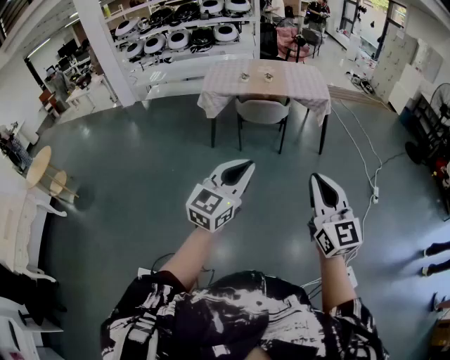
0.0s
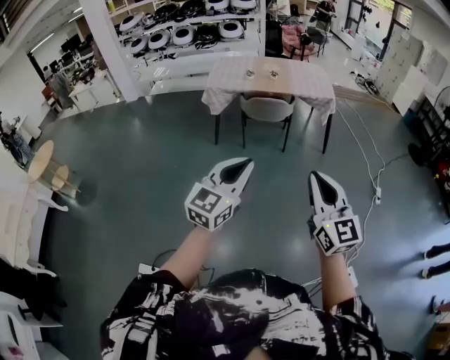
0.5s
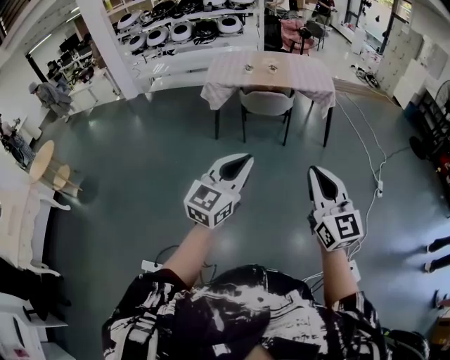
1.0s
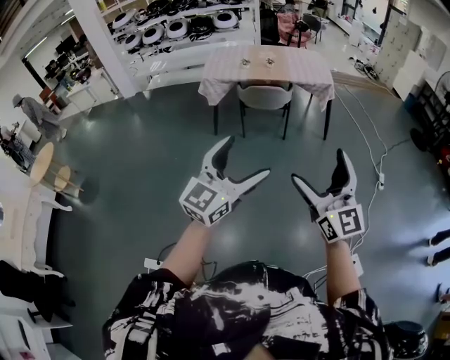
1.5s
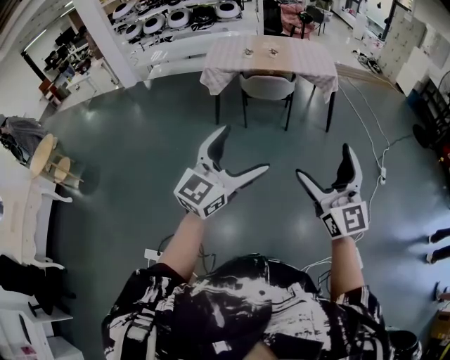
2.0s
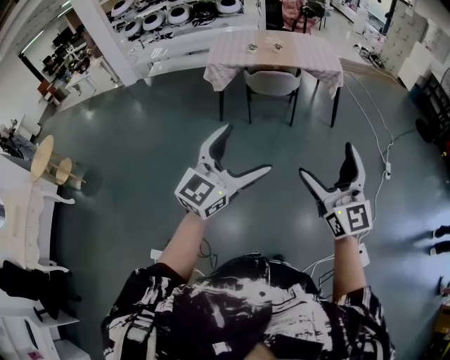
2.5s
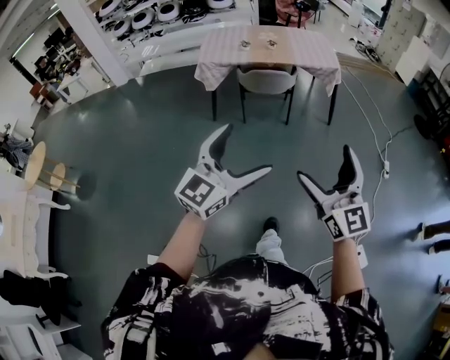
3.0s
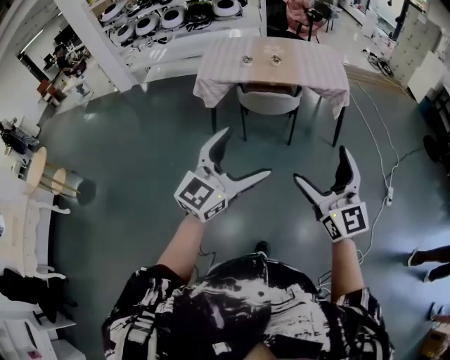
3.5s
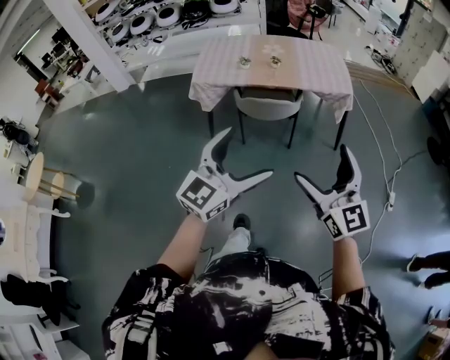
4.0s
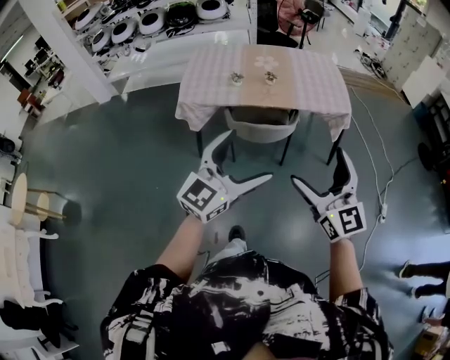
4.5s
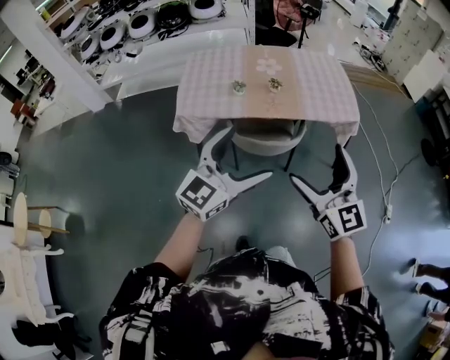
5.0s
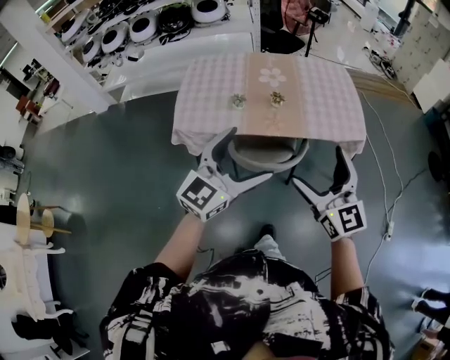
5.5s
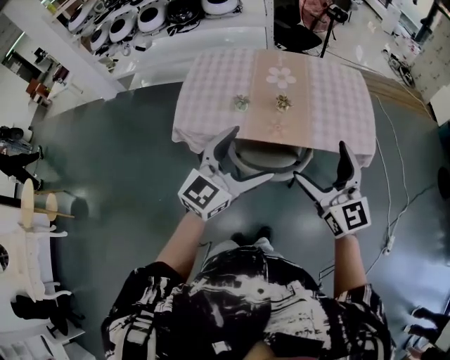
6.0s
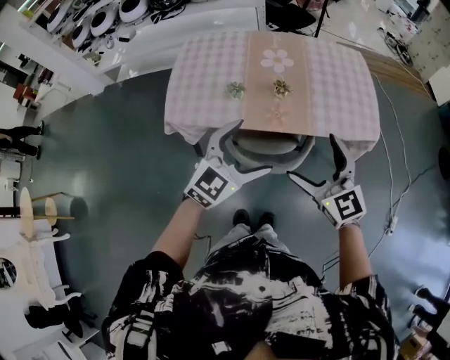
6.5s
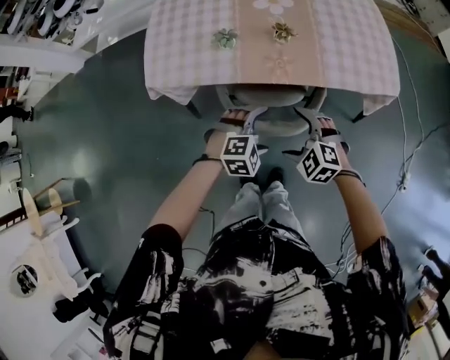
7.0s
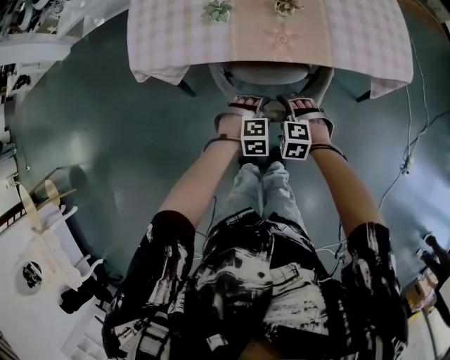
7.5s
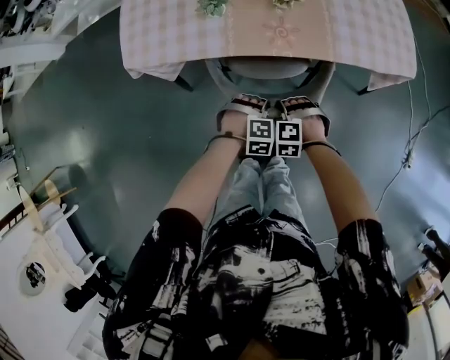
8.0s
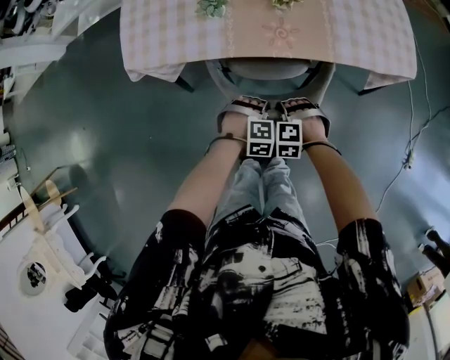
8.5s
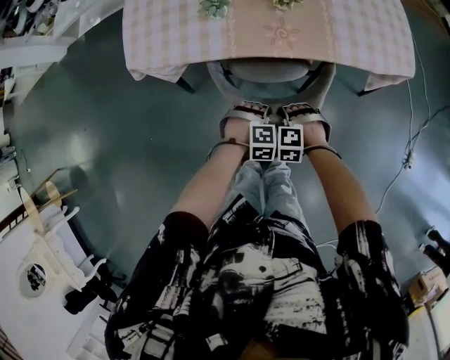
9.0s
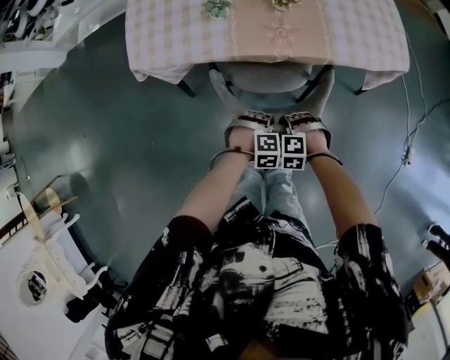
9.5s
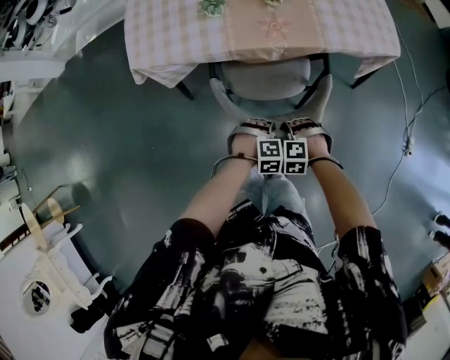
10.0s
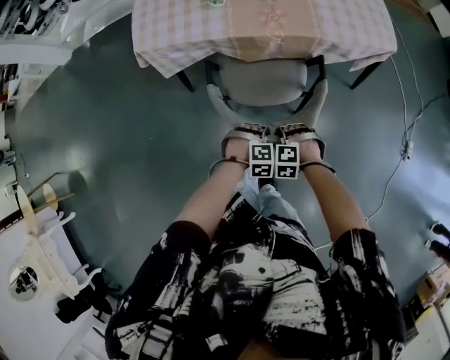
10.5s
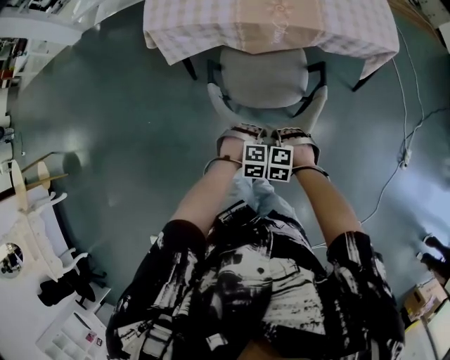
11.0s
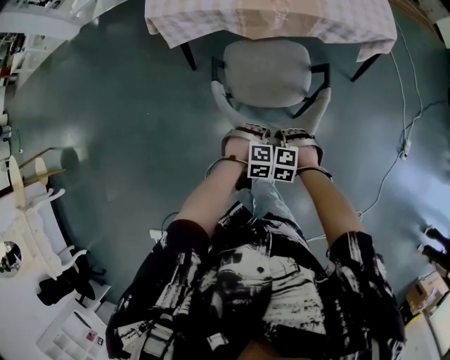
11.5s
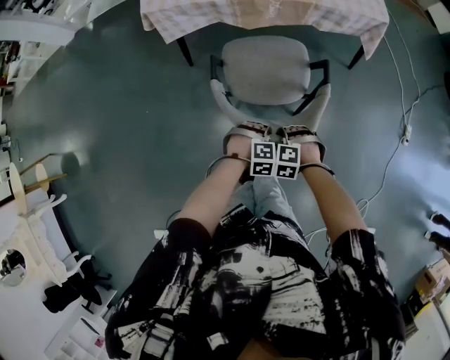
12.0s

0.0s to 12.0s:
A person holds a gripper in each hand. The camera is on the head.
0.0s to 2.0s: The right gripper opens its fingers. The left gripper opens up.
2.0s to 4.0s: Both grippers are carried forward, roughly 40 cm.
4.0s to 6.0s: The two grippers travel together, forward, some 60 cm.
6.0s to 8.0s: The two grippers go about 60 cm downward. The left gripper points its fingers about 70 degrees further downward, and closes up. Meanwhile the right gripper tilts its fingers approximately 70 degrees downward, and closes up.
8.0s to 10.0s: The right gripper shifts by roughly 15 cm, while the left gripper shifts by some 15 cm.
10.0s to 12.0s: The left gripper shifts by about 30 cm. Meanwhile the right gripper ends up approximately 30 cm from where it was.

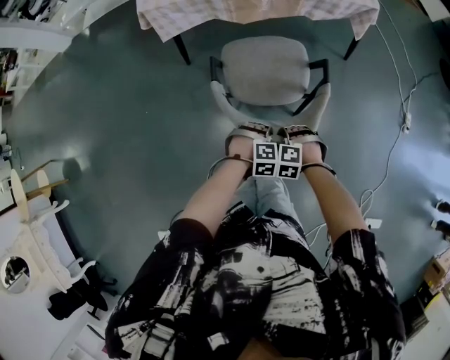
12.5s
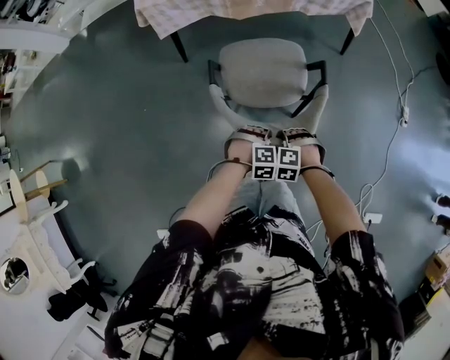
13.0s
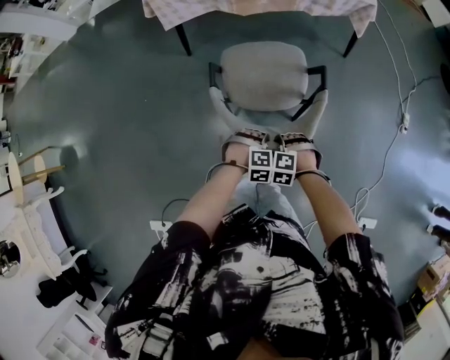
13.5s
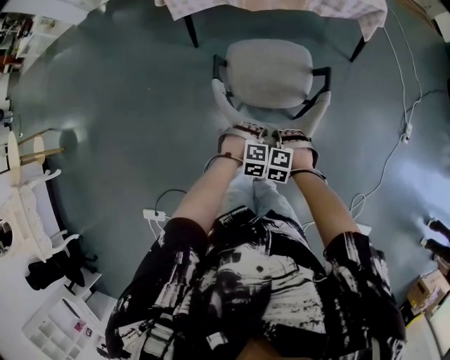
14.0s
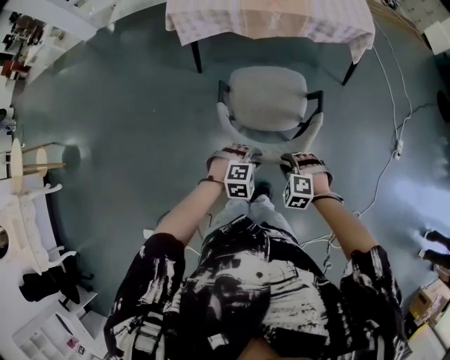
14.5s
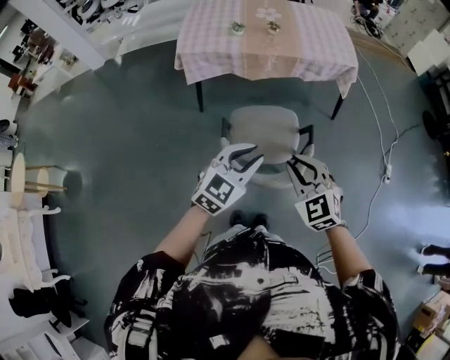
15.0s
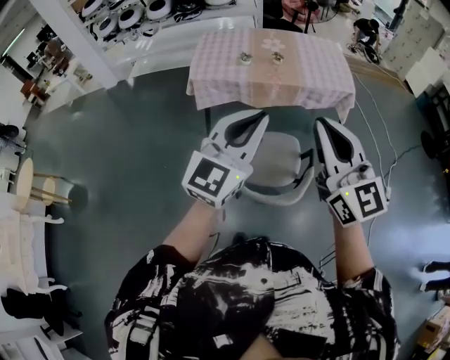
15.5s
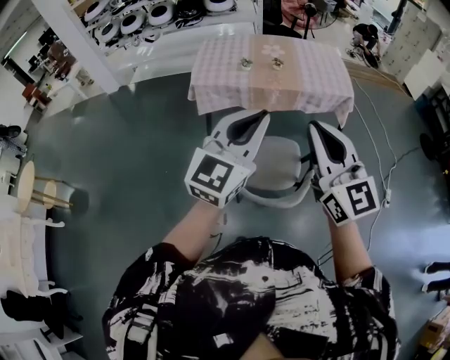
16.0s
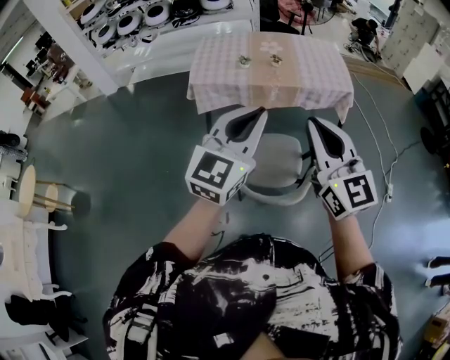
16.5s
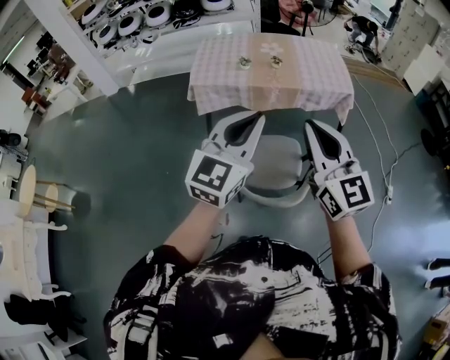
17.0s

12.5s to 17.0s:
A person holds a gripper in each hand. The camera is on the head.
12.5s to 14.5s: The right gripper shifts by roughly 15 cm, while the left gripper ends up roughly 15 cm from where it was.
14.5s to 17.0s: Both grippers travel together upward, about 50 cm. The left gripper tilts its fingers about 60 degrees upward. The right gripper angles its fingers upward, by some 70 degrees.

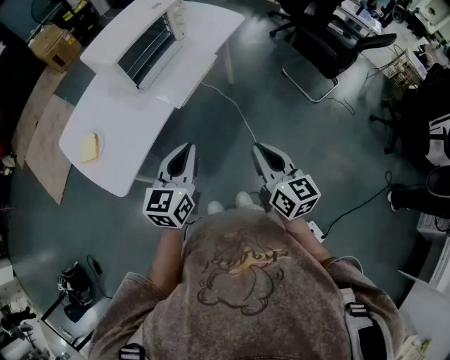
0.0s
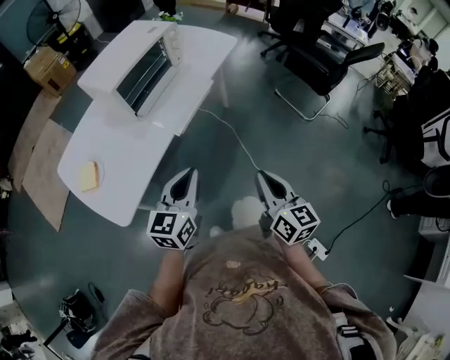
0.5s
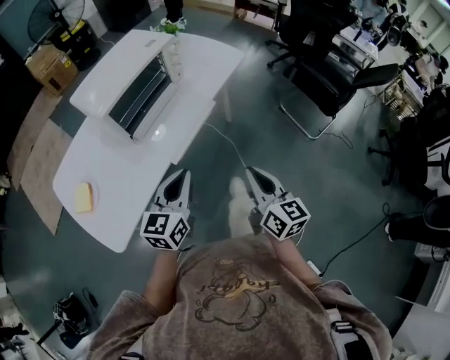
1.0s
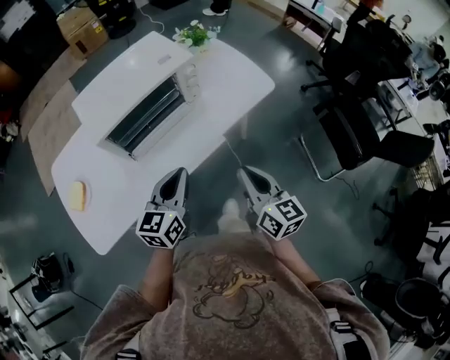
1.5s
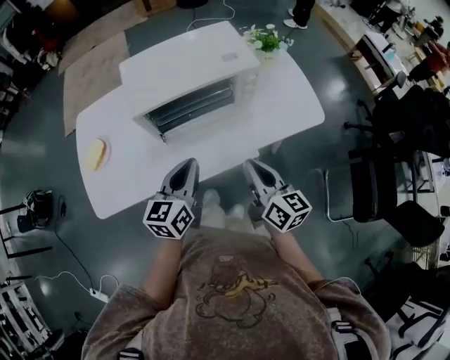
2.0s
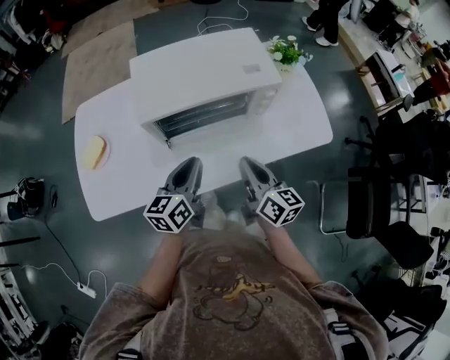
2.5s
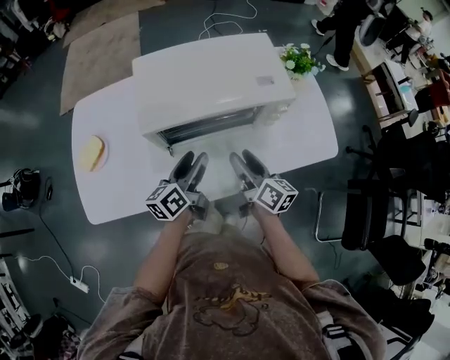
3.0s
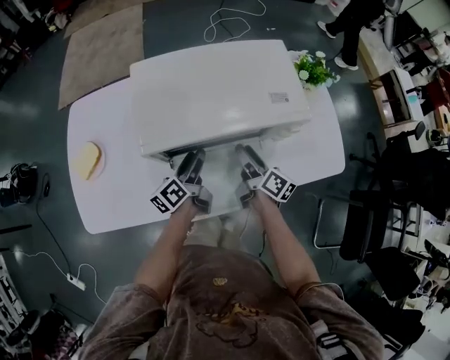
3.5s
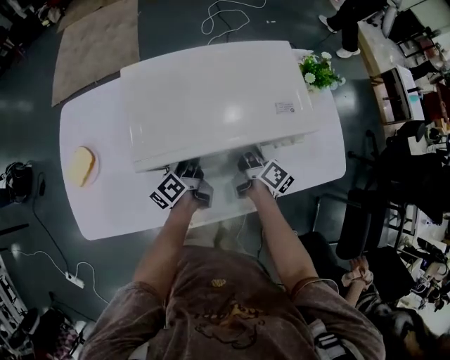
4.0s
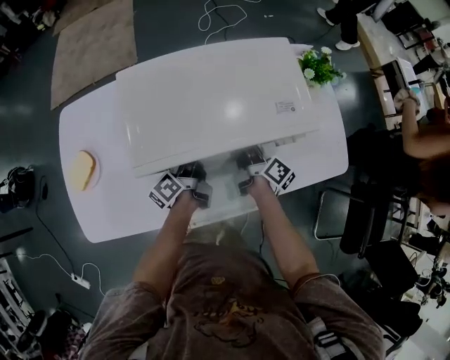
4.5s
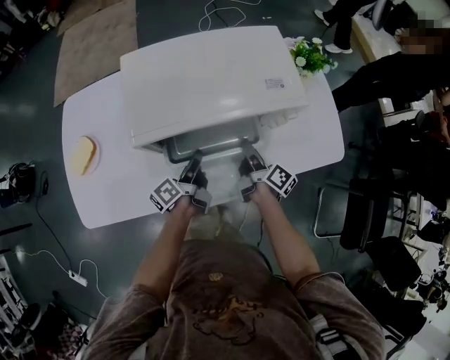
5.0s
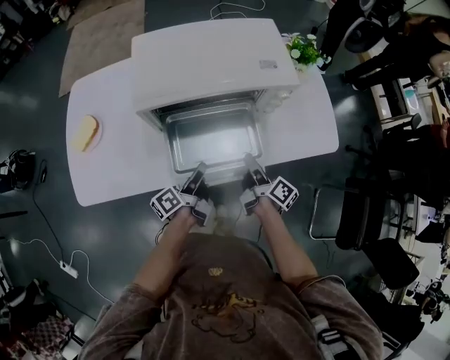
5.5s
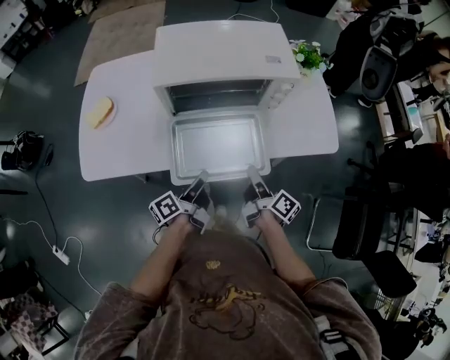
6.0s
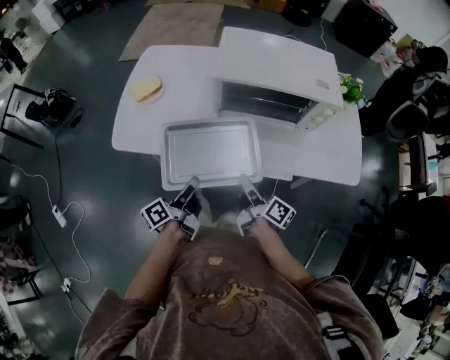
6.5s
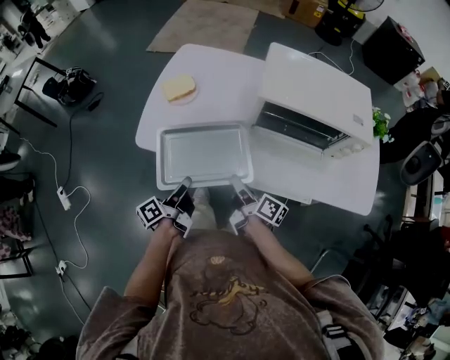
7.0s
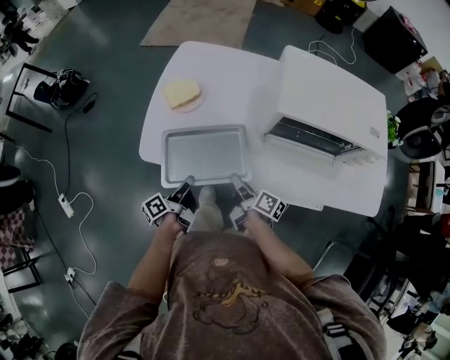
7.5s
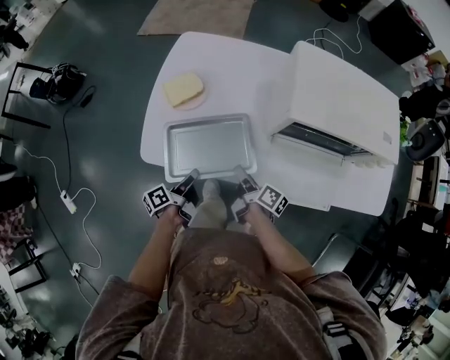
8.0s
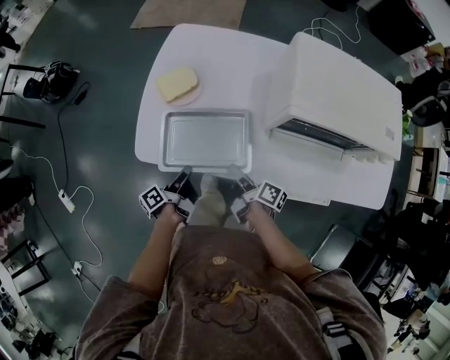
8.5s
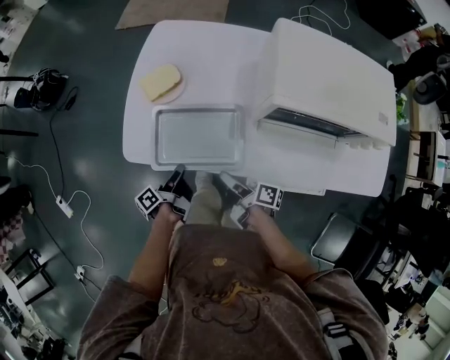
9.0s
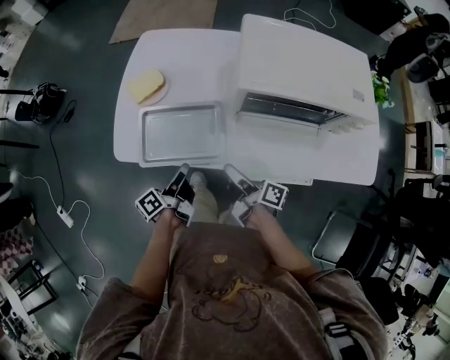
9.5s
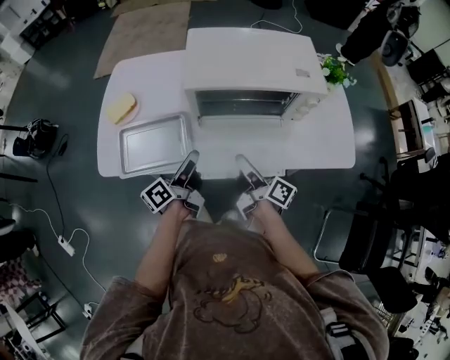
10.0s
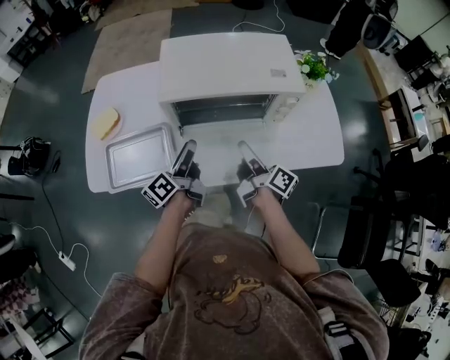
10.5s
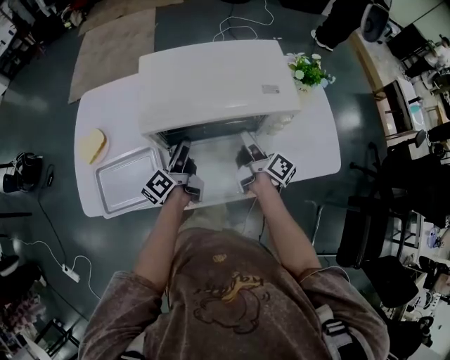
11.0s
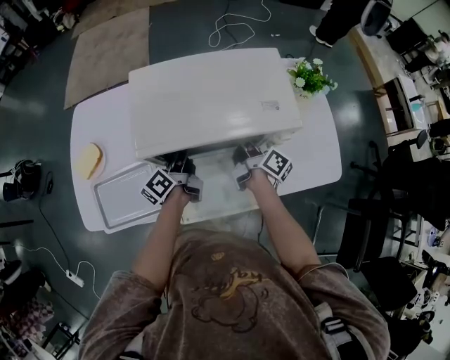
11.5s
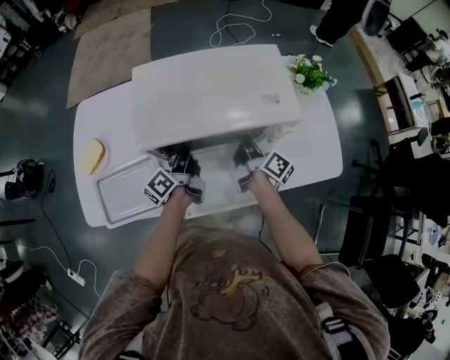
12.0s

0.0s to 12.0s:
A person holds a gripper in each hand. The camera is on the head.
0.0s to 2.0s: The left gripper ends up roughly 30 cm from where it was, and rotates approximately 40 degrees. The right gripper shifts by some 40 cm, and changes its angle by some 40 degrees.
2.0s to 4.0s: The two grippers go about 30 cm forward and downward. The left gripper twists approximately 50 degrees counterclockwise, seen from behind, and opens up. Meanwhile the right gripper rotates some 30 degrees, and opens.
4.0s to 6.0s: Both grippers travel together backward, about 25 cm. The right gripper closes up; the left gripper closes up.
6.0s to 8.0s: The right gripper ends up roughly 35 cm from where it was, and rotates some 30 degrees. The left gripper moves approximately 35 cm, and turns by about 20 degrees.
8.0s to 10.0s: The two grippers go about 25 cm to the right and upward. The left gripper turns by roughly 20 degrees, and closes, then opens again; the right gripper rotates roughly 20 degrees.
10.0s to 12.0s: Both grippers move forward and to the right, about 20 cm. The left gripper closes up, while the right gripper closes its fingers.
